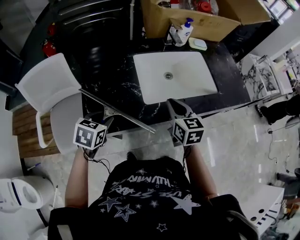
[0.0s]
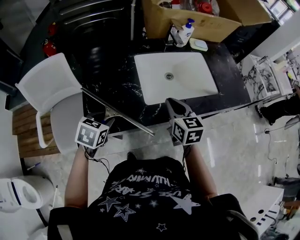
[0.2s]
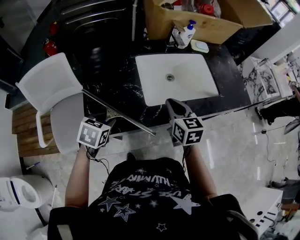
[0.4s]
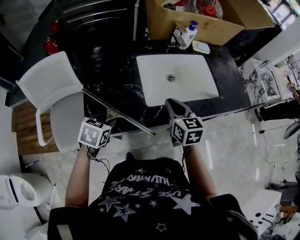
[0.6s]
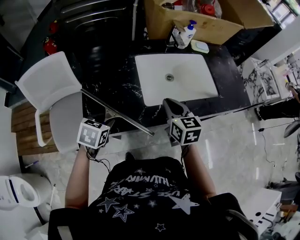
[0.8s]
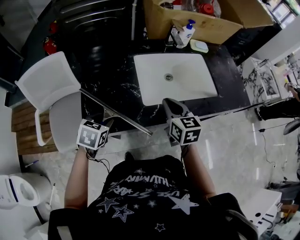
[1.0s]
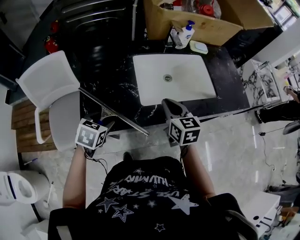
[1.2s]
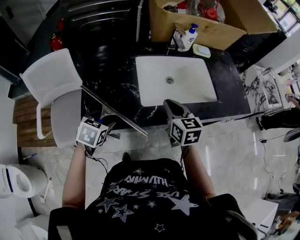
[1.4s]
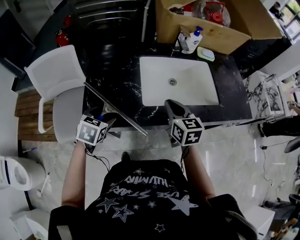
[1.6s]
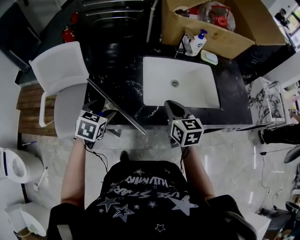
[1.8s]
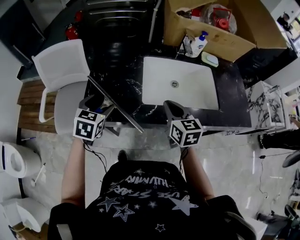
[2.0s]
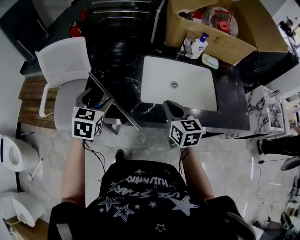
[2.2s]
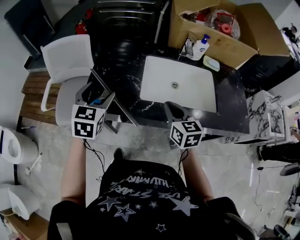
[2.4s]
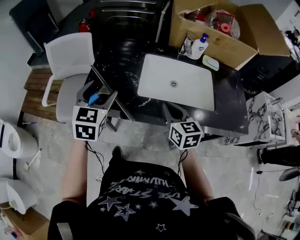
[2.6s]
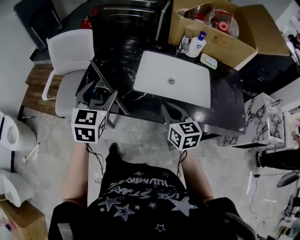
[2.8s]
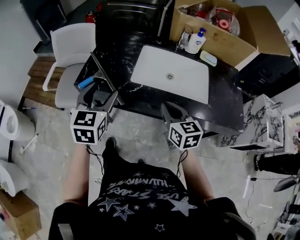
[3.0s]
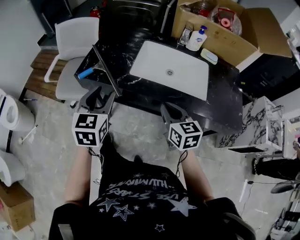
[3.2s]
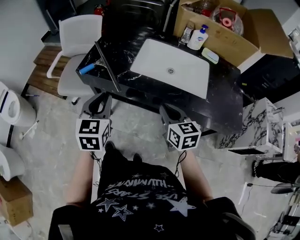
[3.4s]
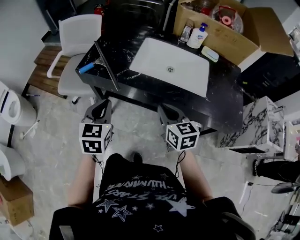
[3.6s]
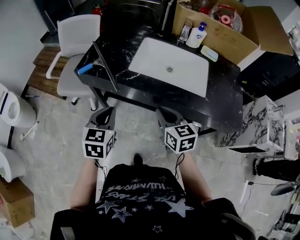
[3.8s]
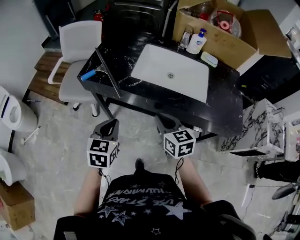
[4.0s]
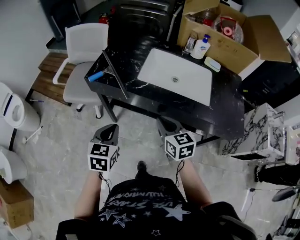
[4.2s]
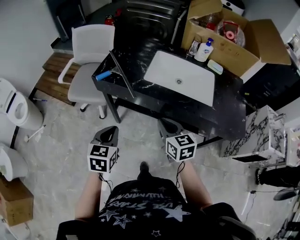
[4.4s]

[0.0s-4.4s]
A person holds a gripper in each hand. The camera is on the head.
0.0s to 1.4s: The left gripper opens its fingers.
1.4s to 3.0s: The left gripper moves approximately 25 cm, and points its fingers some 40 degrees further upward, while the right gripper changes place by roughly 15 cm, and swivels about 20 degrees.
3.0s to 4.4s: The left gripper moves backward and downward, some 20 cm, and closes up; the right gripper is displaced backward and to the left by roughly 15 cm.

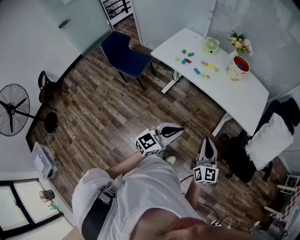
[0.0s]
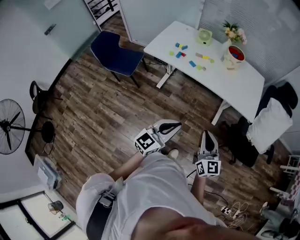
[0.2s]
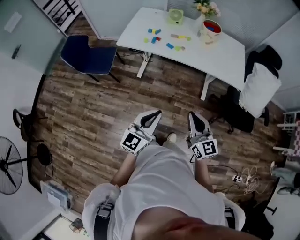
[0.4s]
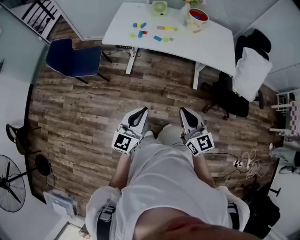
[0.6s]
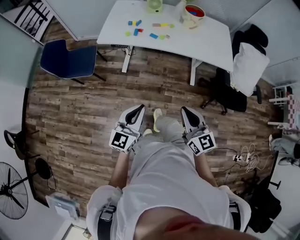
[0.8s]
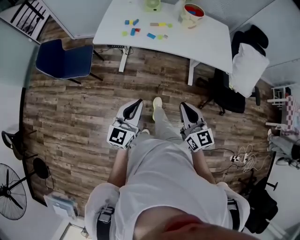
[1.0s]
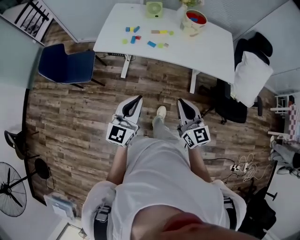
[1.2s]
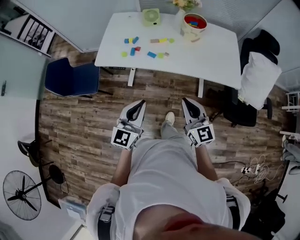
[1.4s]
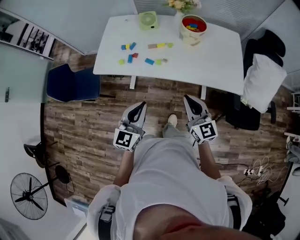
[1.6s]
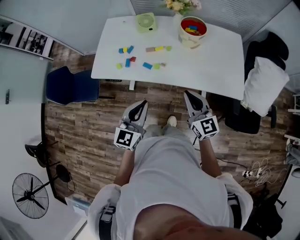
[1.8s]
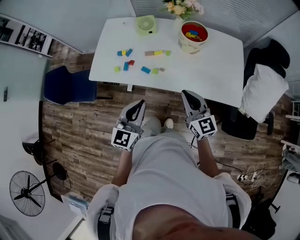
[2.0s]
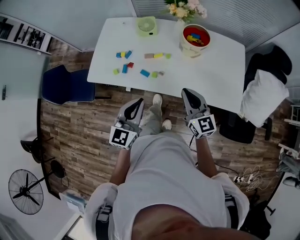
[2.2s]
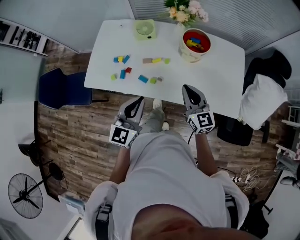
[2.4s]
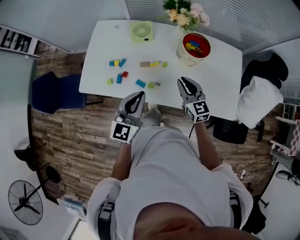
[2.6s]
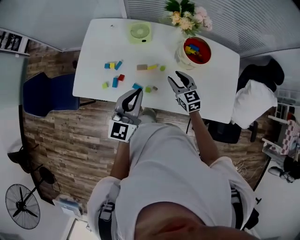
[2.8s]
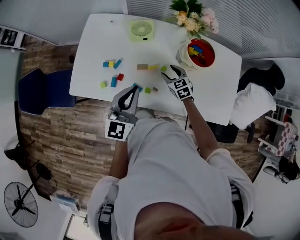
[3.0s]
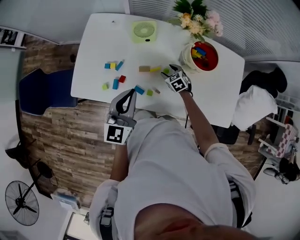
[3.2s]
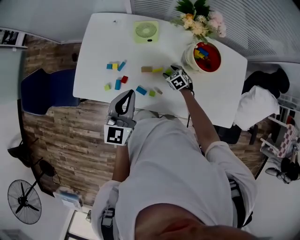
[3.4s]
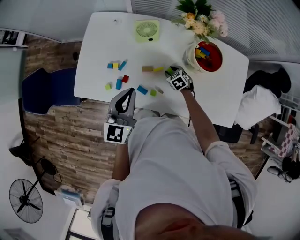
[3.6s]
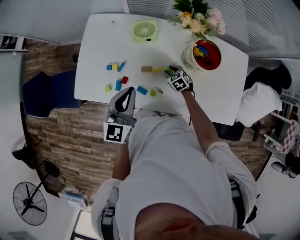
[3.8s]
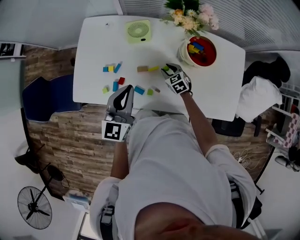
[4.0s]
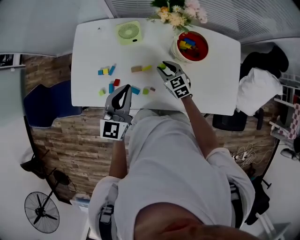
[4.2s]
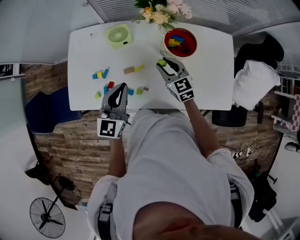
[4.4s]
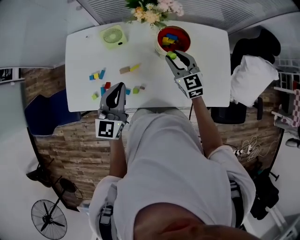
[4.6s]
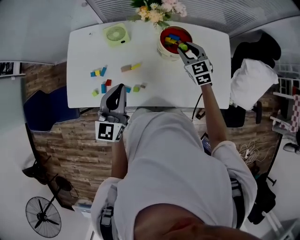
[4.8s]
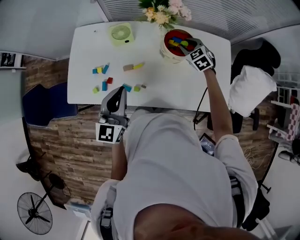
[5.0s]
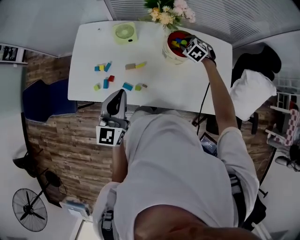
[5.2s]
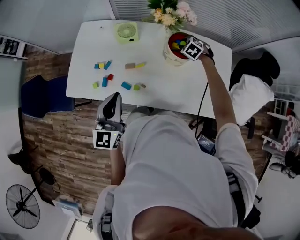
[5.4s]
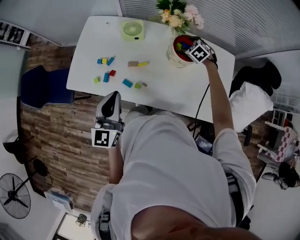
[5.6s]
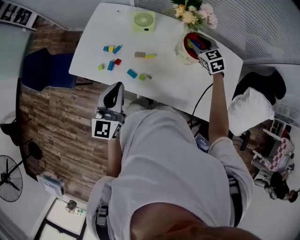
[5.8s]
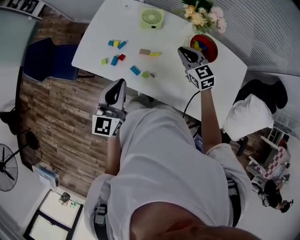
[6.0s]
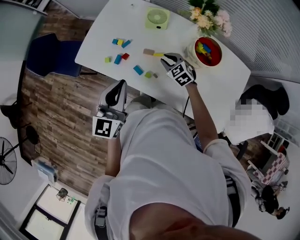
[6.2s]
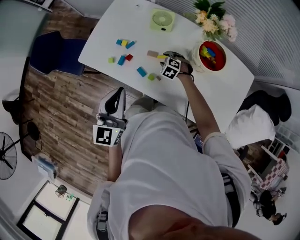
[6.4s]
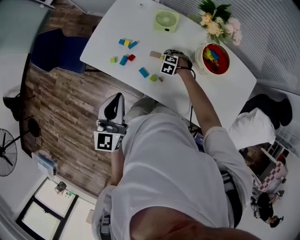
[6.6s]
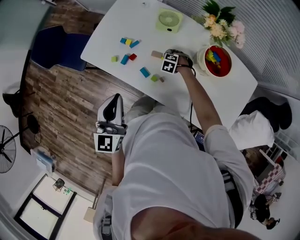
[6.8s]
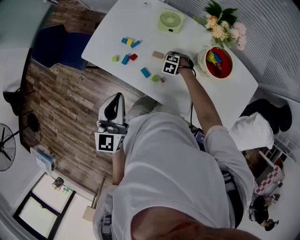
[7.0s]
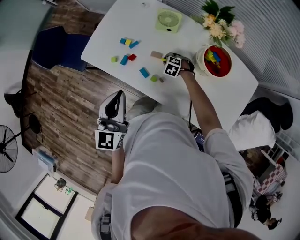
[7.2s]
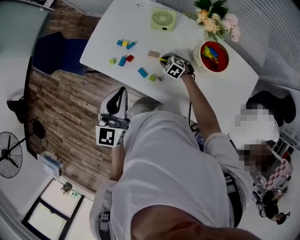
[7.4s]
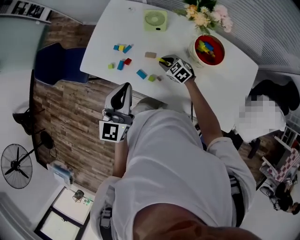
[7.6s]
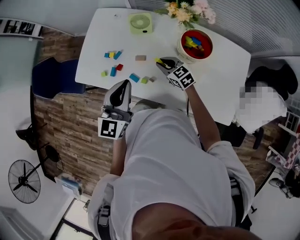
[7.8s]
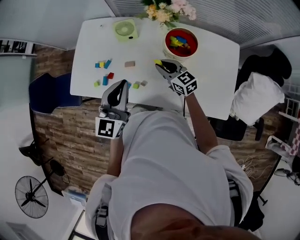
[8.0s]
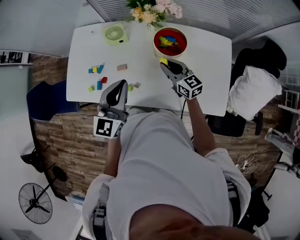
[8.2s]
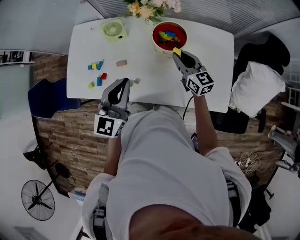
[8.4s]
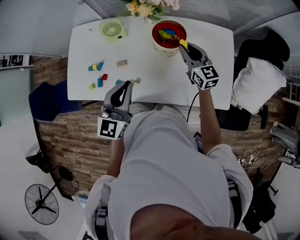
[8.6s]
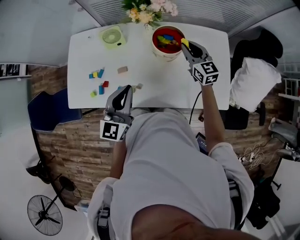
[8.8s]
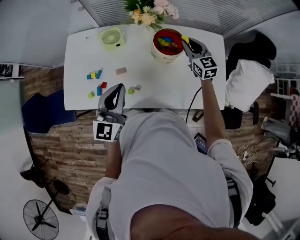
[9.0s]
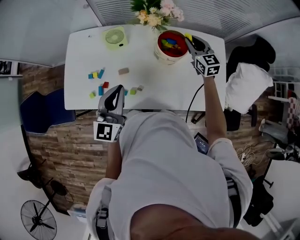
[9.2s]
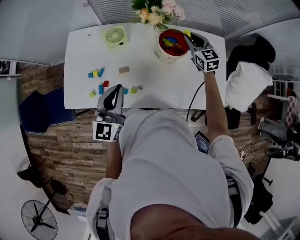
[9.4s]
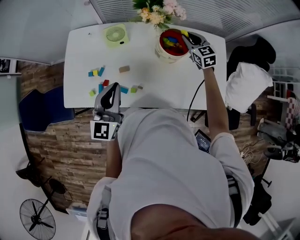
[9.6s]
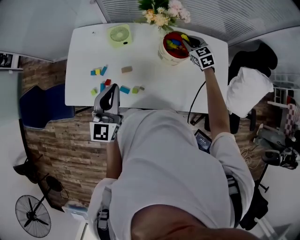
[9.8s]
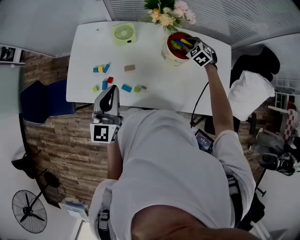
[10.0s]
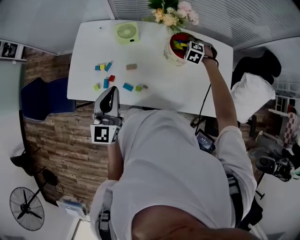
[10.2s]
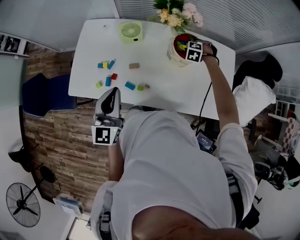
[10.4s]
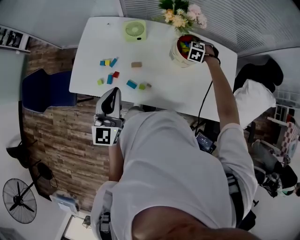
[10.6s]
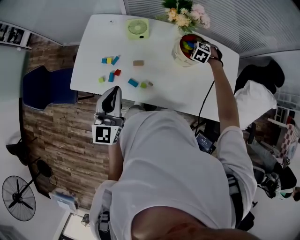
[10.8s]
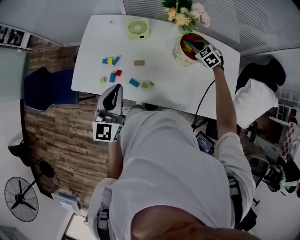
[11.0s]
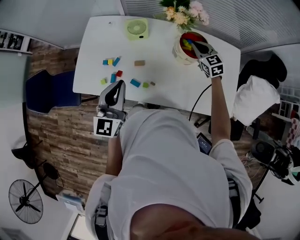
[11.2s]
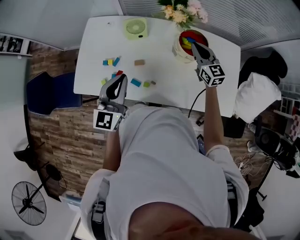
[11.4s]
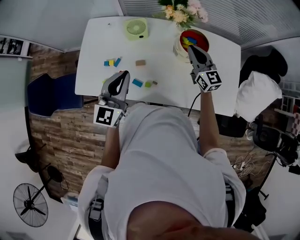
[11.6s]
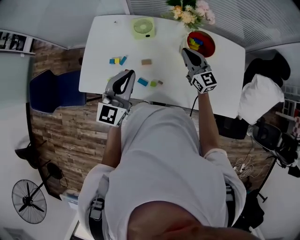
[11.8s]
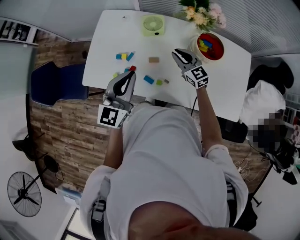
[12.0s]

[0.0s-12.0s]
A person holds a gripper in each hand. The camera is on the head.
0.0s to 1.6s: Both grippers travel together forward, some 25 cm.
1.6s to 3.0s: The left gripper moves forward, about 30 cm; the right gripper is displaced forward and downward by roughly 50 cm, points its fingers some 40 degrees further downward, and opens.
3.0s to 4.4s: The right gripper travels upward by approximately 15 cm, rotates some 20 degrees, and closes its fingers.
4.4s to 6.0s: The right gripper goes up and down, some 15 cm each way, reversing 2 times, changes its angle by roughly 20 degrees, and closes its fingers. Meanwhile the left gripper shifts by roughly 10 cm, and changes its angle by approximately 20 degrees.
6.0s to 7.6s: The right gripper travels downward by approximately 15 cm, rotates about 20 degrees, and opens and closes again.
7.6s to 9.0s: The right gripper shifts by about 35 cm, and changes its angle by roughly 50 degrees, while the left gripper swivels approximately 20 degrees.
9.0s to 10.4s: The left gripper moves to the left, approximately 10 cm, while the right gripper travels downward by about 15 cm, and tips its fingers downward by approximately 50 degrees.
10.4s to 12.0s: The right gripper shifts by roughly 25 cm, tips its fingers upward by some 50 degrees, and opens, then closes again.

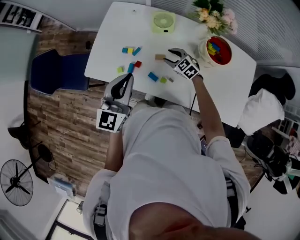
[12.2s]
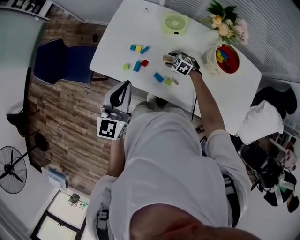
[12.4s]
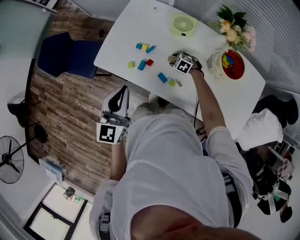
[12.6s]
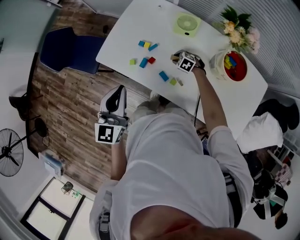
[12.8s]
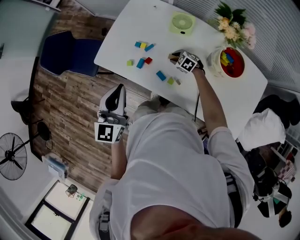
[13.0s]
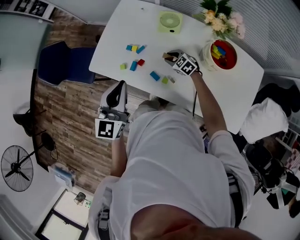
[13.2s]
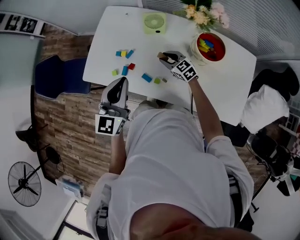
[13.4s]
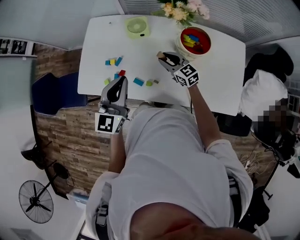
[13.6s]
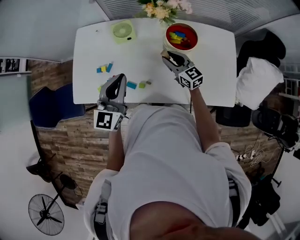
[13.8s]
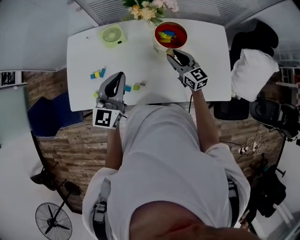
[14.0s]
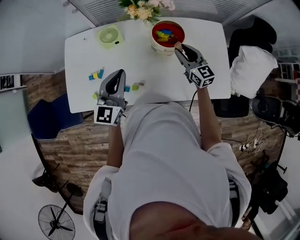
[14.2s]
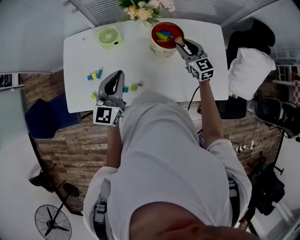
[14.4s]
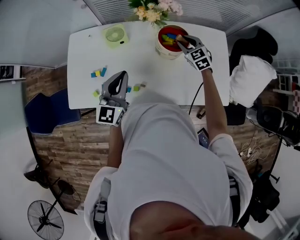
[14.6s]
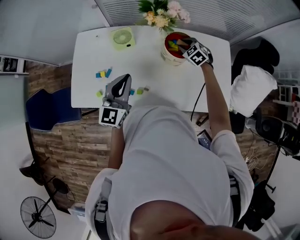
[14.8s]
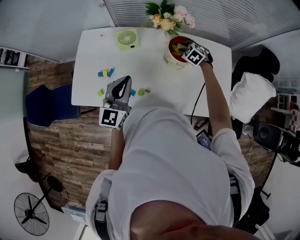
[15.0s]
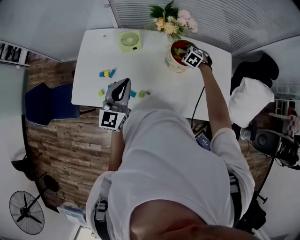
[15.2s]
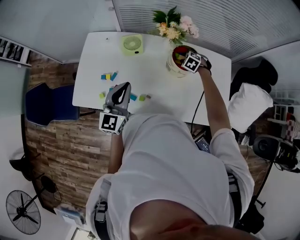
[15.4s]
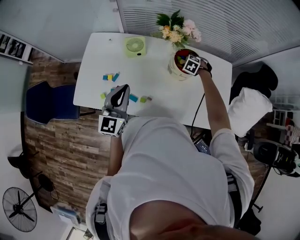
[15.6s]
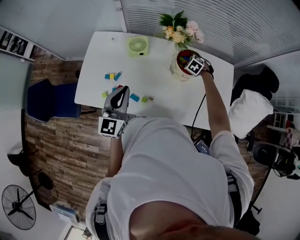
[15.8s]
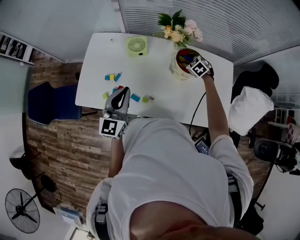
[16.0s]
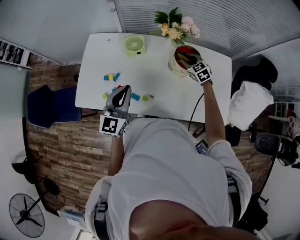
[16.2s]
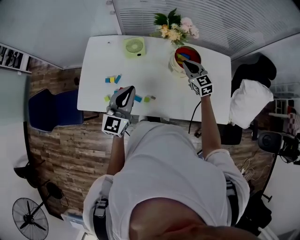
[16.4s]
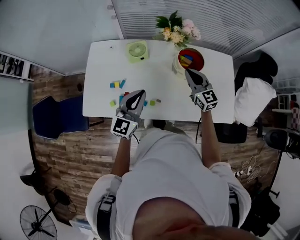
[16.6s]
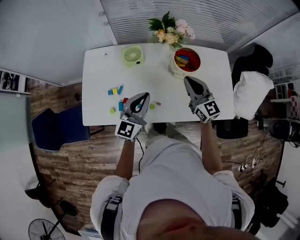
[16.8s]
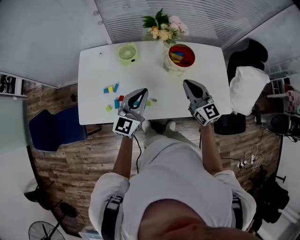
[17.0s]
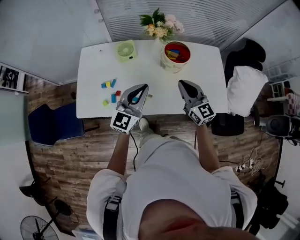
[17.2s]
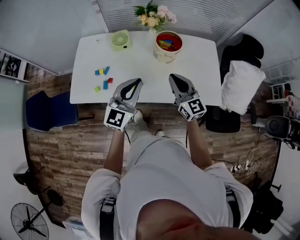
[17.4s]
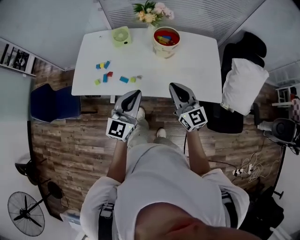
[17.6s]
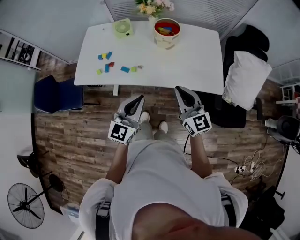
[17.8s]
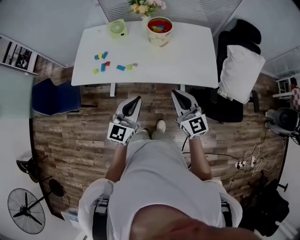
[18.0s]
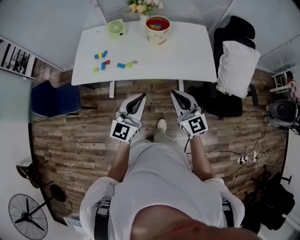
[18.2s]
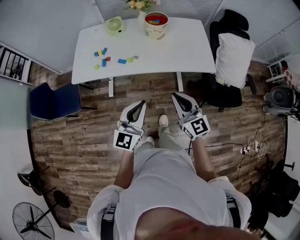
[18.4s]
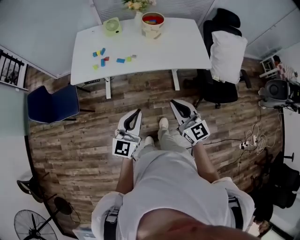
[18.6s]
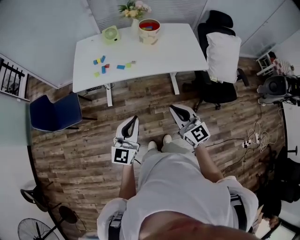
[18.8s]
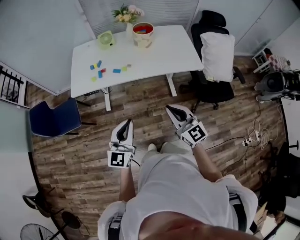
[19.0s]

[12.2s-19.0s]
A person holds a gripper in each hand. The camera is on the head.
12.2s to 13.6s: The right gripper moves roughly 10 cm, and rotates some 30 degrees, while the left gripper ends up some 10 cm from where it was.
13.6s to 15.0s: The right gripper moves to the right and forward, approximately 20 cm, and points its fingers some 40 degrees further downward.
15.0s to 16.2s: The right gripper moves roughly 5 cm, rotates approximately 20 degrees, and opens and closes again.
16.2s to 17.6s: The left gripper shifts some 25 cm backward and to the right. Meanwhile the right gripper heads backward and upward, covering about 40 cm, angles its fingers upward, by some 40 degrees, and closes.
17.6s to 19.0s: The two grippers go approximately 30 cm backward.
